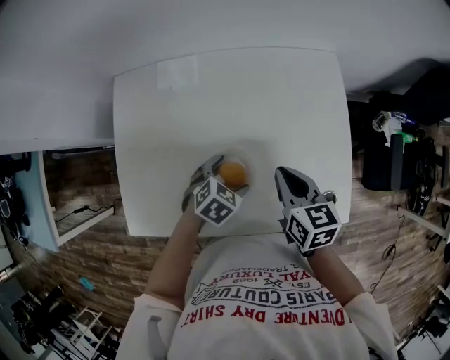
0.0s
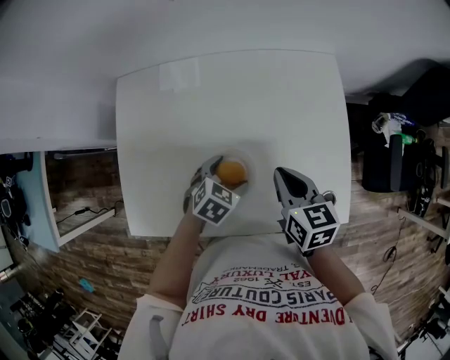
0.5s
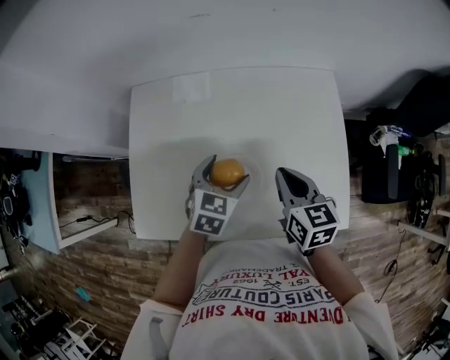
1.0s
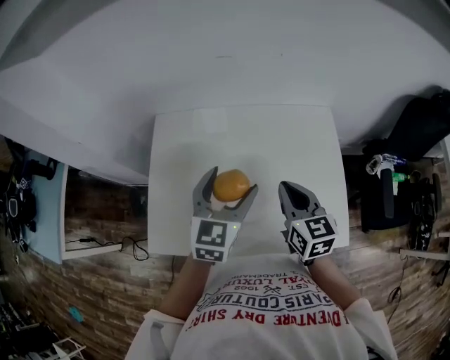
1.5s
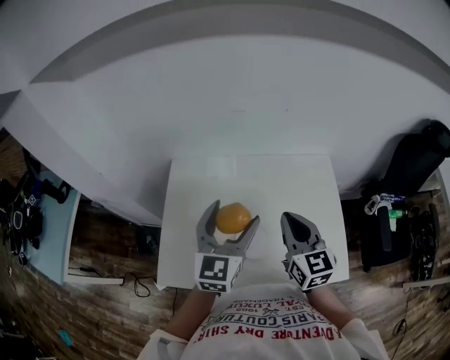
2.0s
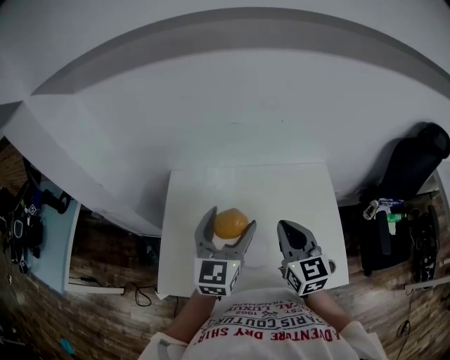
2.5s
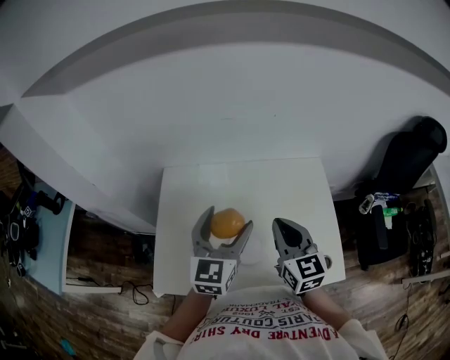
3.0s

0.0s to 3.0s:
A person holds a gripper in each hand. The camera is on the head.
0.0s to 1.5s: The right gripper travels upward by some 10 cm. The left gripper shifts some 25 cm upward, and points its fingers some 40 degrees further upward.
1.5s to 3.0s: Both grippers travel together upward, some 5 cm.

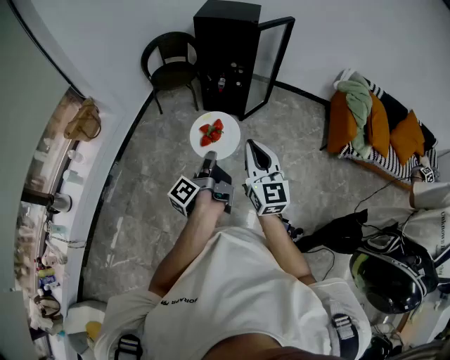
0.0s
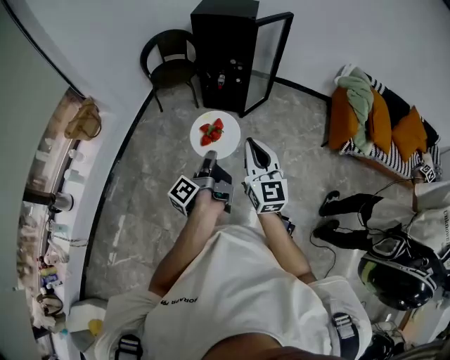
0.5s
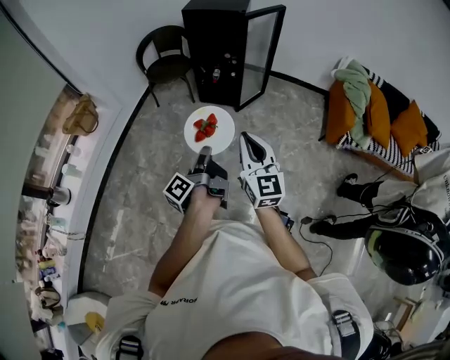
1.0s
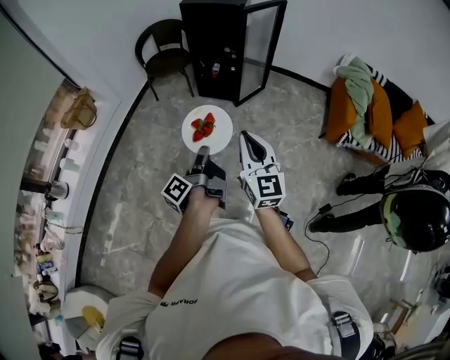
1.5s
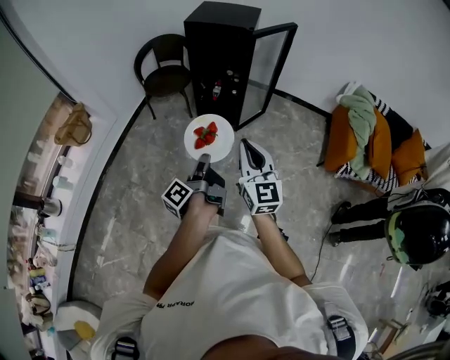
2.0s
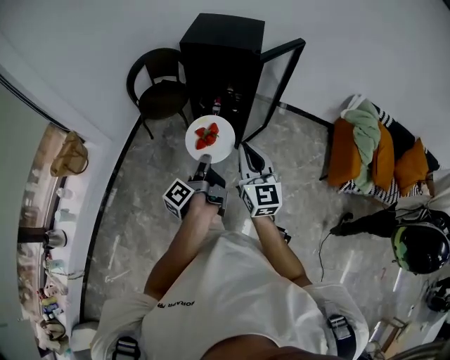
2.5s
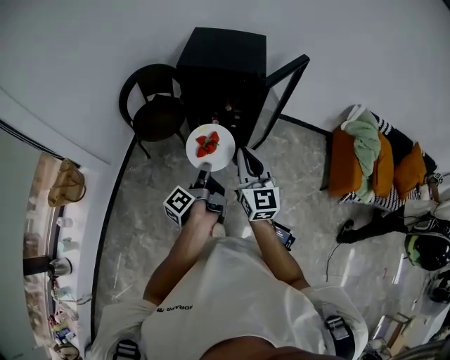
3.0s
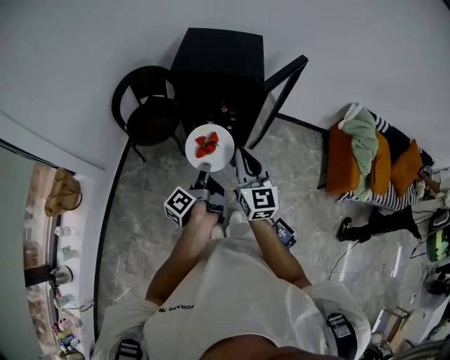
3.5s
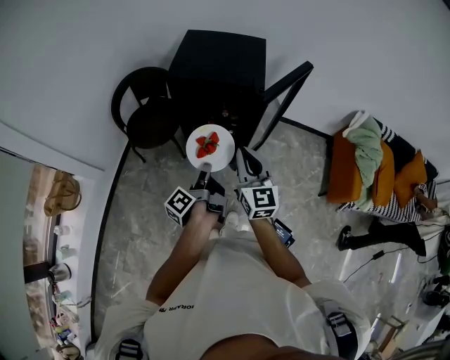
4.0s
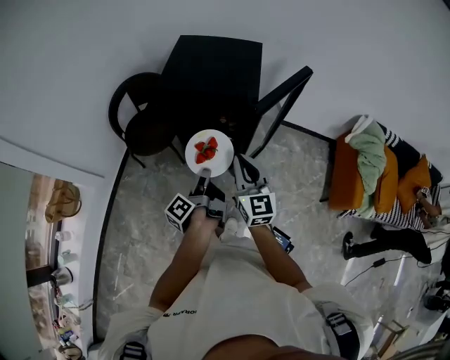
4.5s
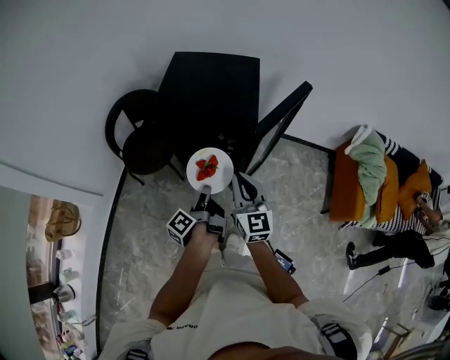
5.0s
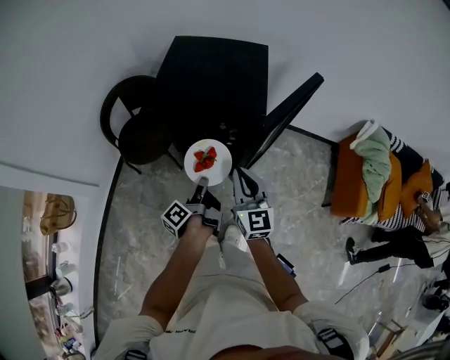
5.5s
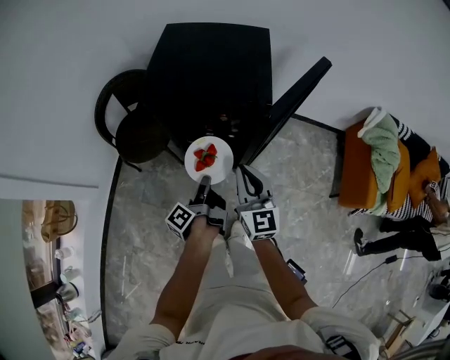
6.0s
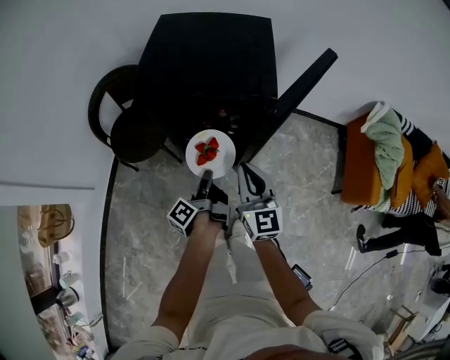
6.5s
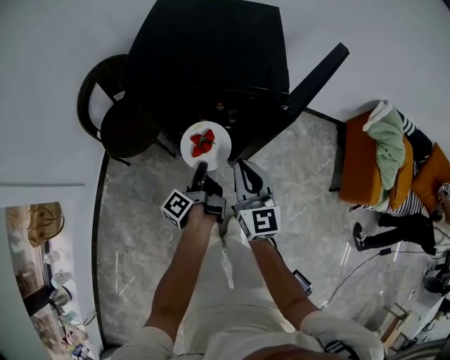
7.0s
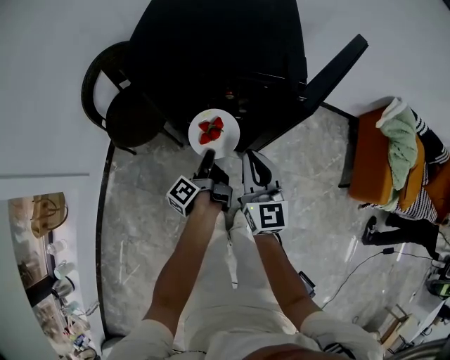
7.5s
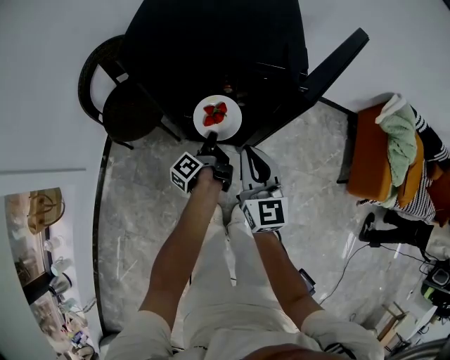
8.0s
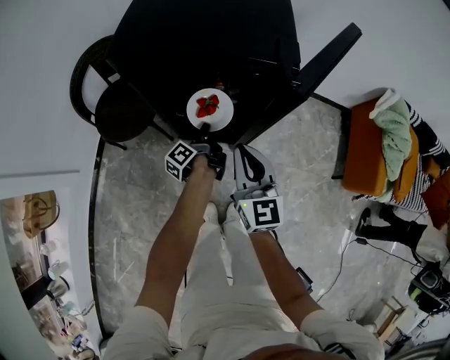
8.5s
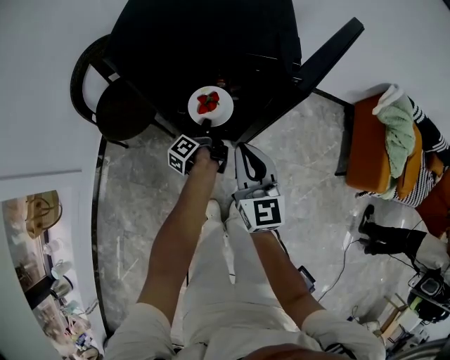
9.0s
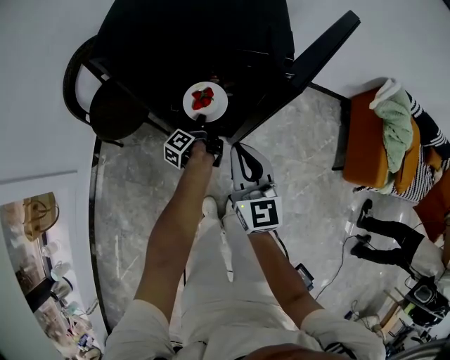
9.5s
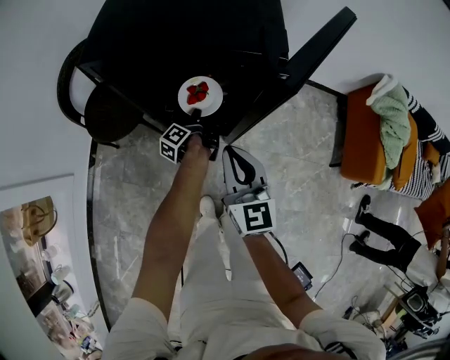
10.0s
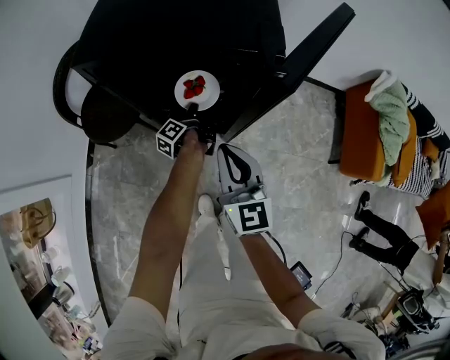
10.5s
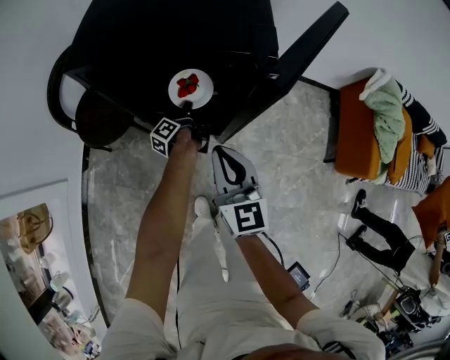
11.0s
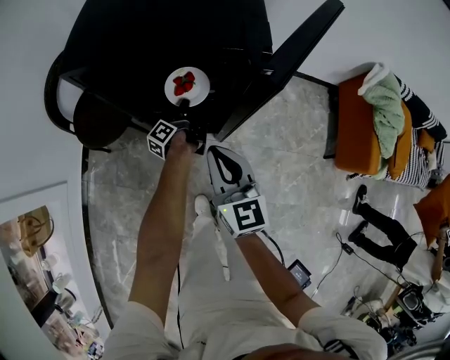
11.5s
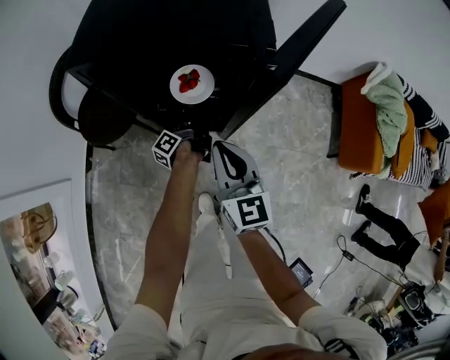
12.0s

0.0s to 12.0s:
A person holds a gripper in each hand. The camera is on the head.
0.0s to 2.0s: The right gripper changes place by about 15 cm.
2.0s to 4.0s: The right gripper changes place by some 40 cm.
4.0s to 6.0s: The right gripper goes some 10 cm downward.
6.0s to 8.0s: The right gripper travels downward by approximately 10 cm.

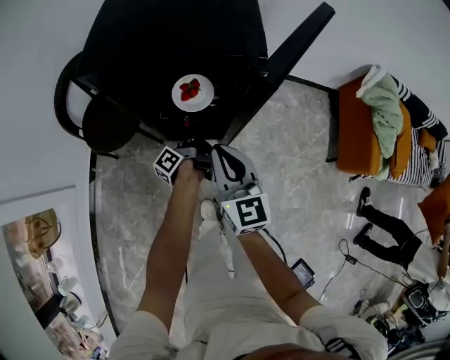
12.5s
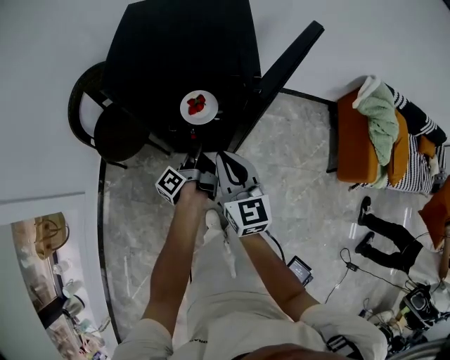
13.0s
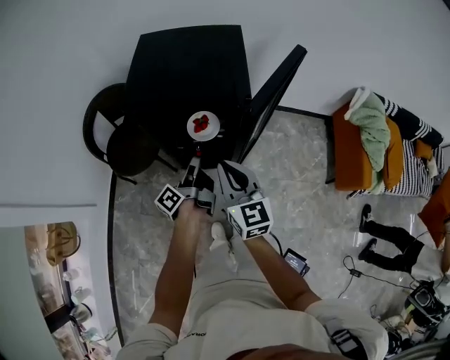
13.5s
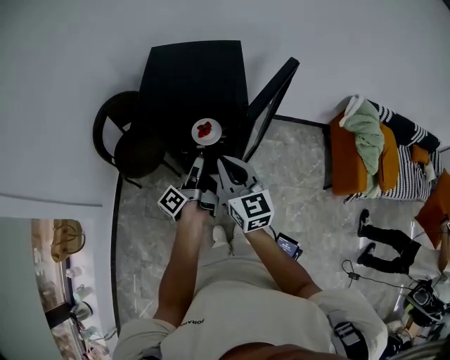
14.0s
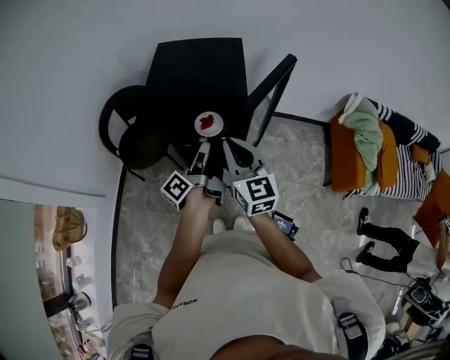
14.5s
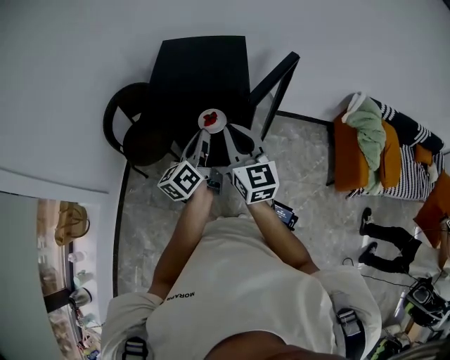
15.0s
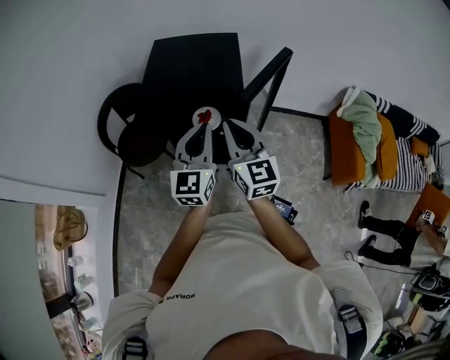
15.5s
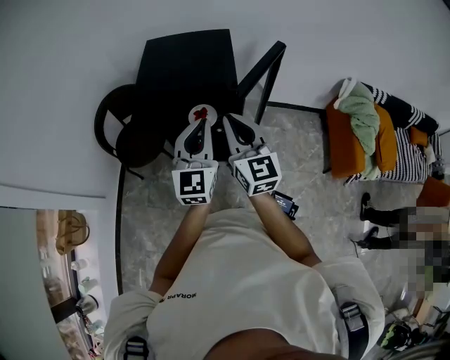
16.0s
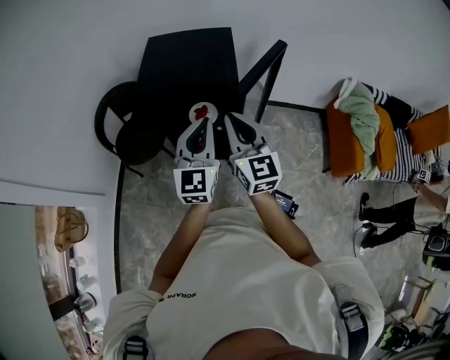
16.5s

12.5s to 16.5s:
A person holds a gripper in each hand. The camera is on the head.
12.5s to 14.5s: The right gripper moves upward, roughly 20 cm.

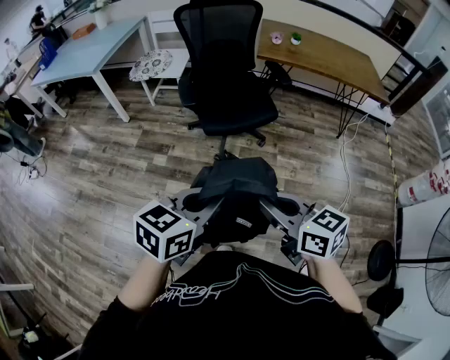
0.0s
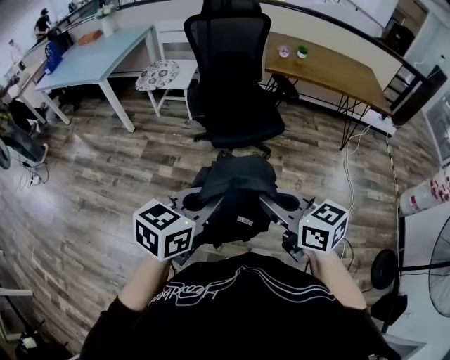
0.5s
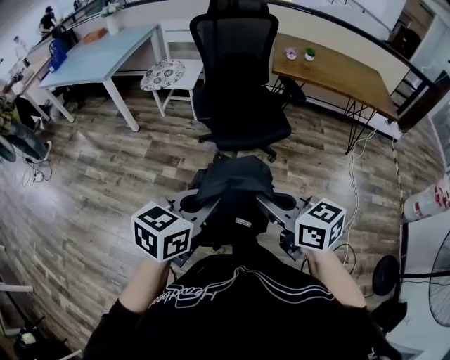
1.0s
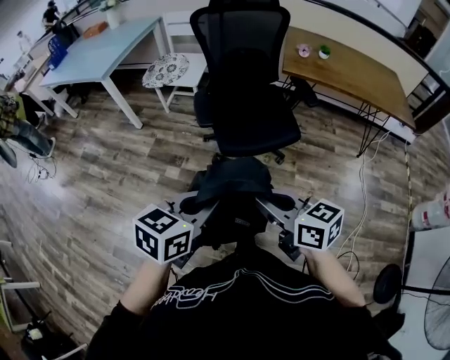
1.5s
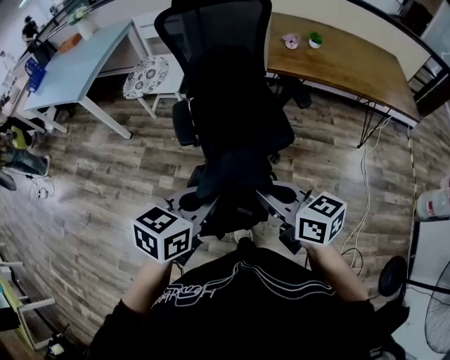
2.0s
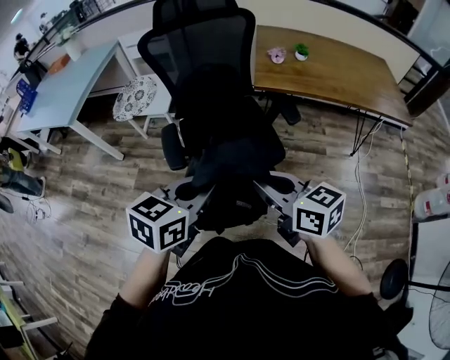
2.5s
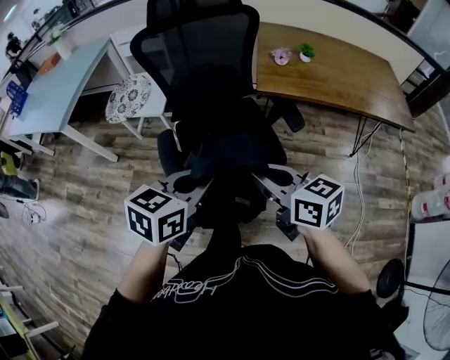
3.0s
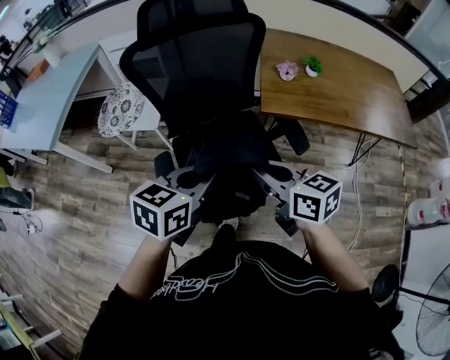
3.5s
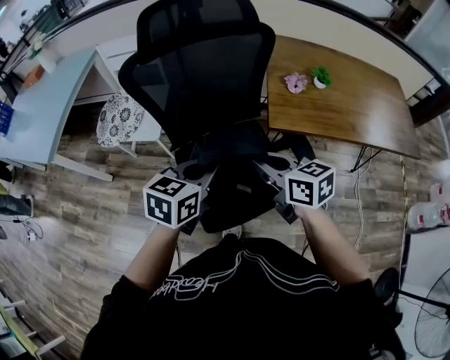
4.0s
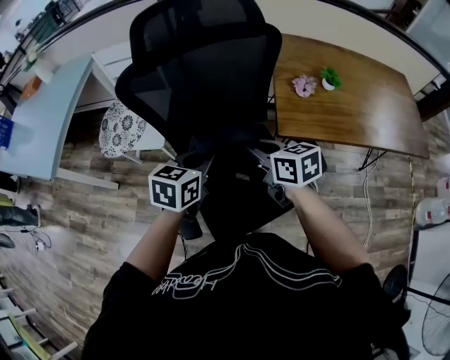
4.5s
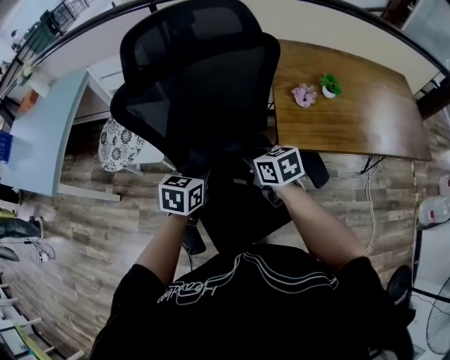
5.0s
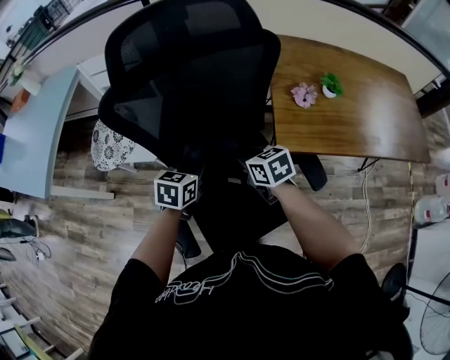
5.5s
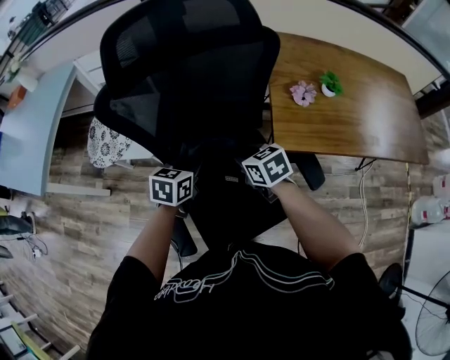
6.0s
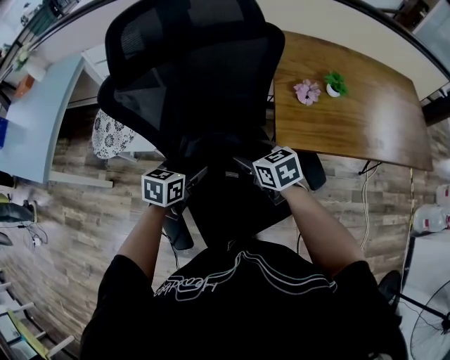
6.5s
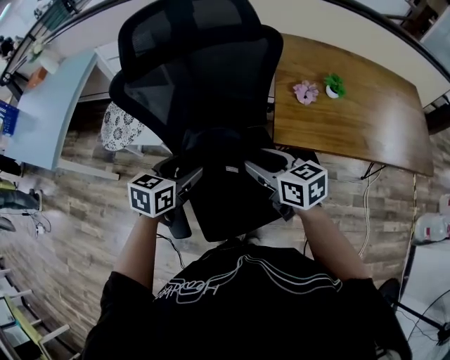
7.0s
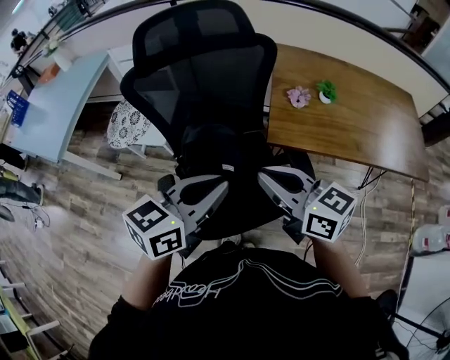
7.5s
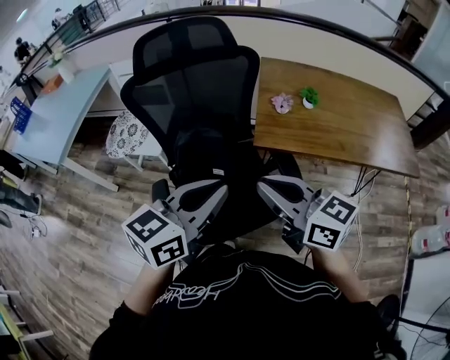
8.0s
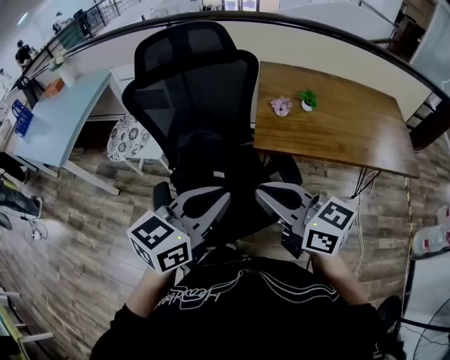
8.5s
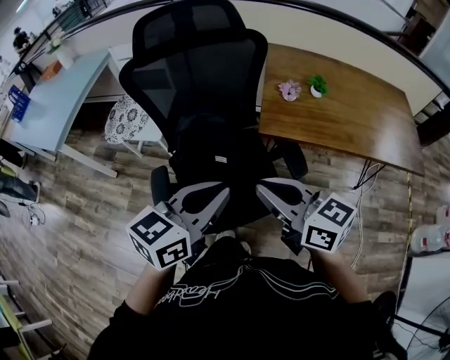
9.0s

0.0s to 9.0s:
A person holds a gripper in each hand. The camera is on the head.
0.0s to 2.0s: Both grippers move forward, approximately 30 cm.
2.0s to 4.5s: The pair of grippers is taken forward, about 50 cm.
4.5s to 7.0s: The right gripper travels downward and back again, roughly 10 cm each way, and opens its fingers, while the left gripper travels downward and back again, roughly 10 cm each way, and opens.
7.0s to 9.0s: The right gripper shifts approximately 20 cm backward and upward, and closes up; the left gripper moves backward, upward and to the right, some 25 cm, turns by some 20 degrees, and closes up.
